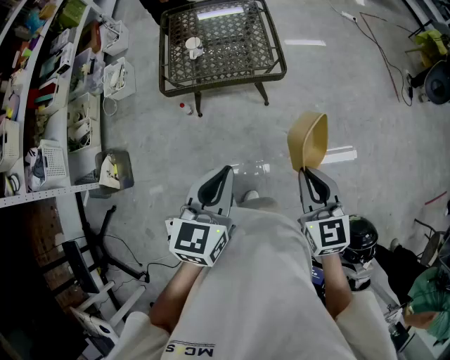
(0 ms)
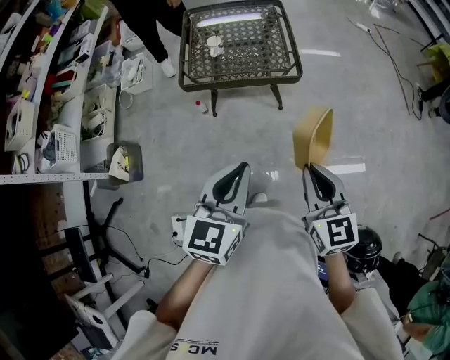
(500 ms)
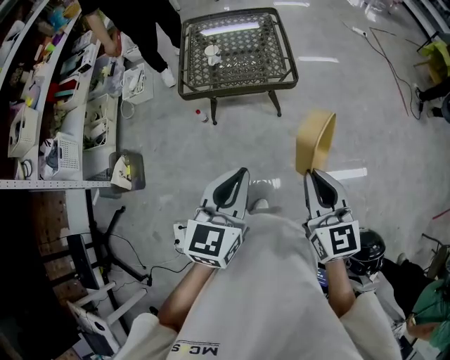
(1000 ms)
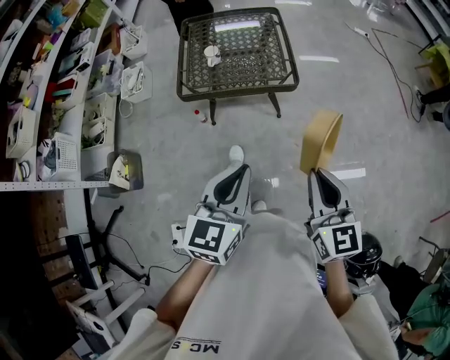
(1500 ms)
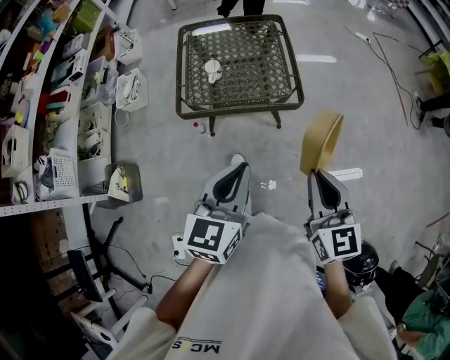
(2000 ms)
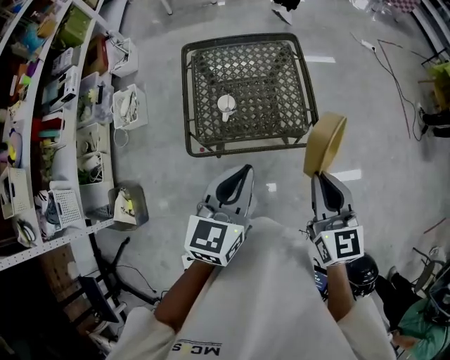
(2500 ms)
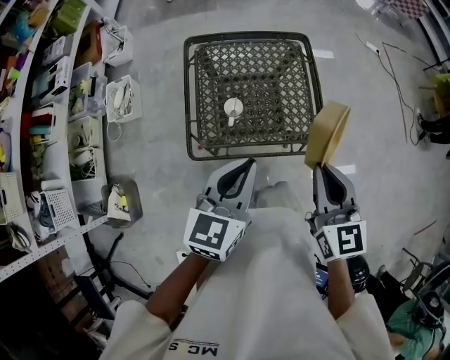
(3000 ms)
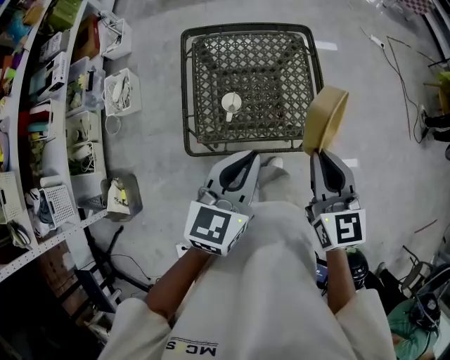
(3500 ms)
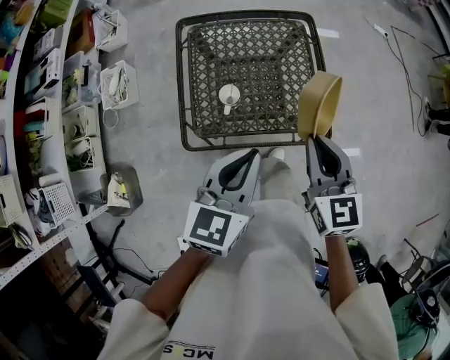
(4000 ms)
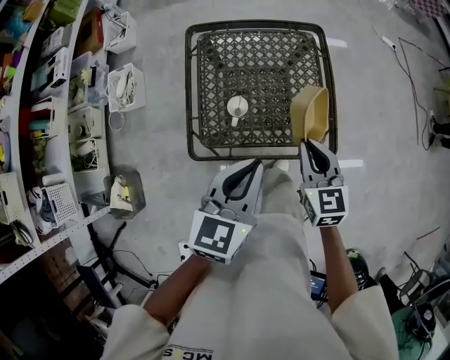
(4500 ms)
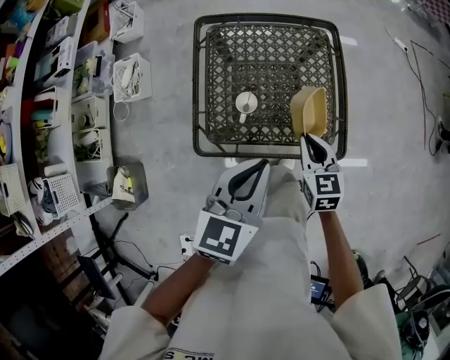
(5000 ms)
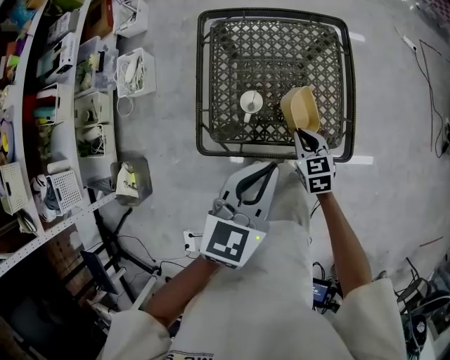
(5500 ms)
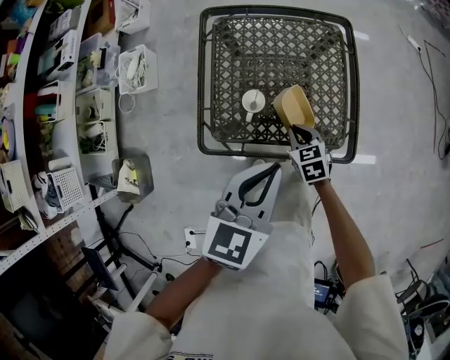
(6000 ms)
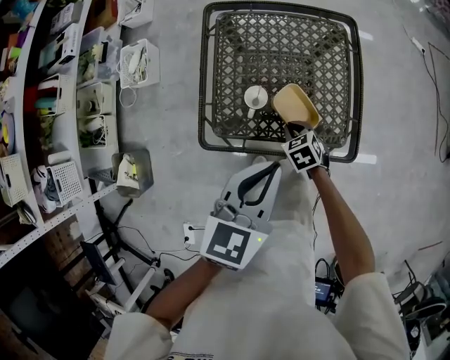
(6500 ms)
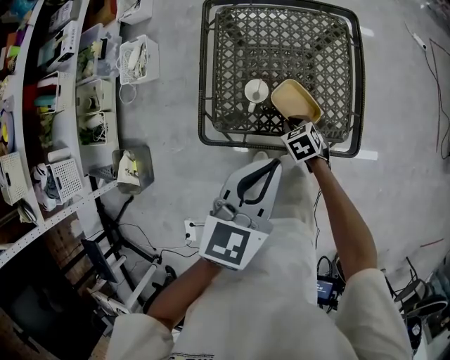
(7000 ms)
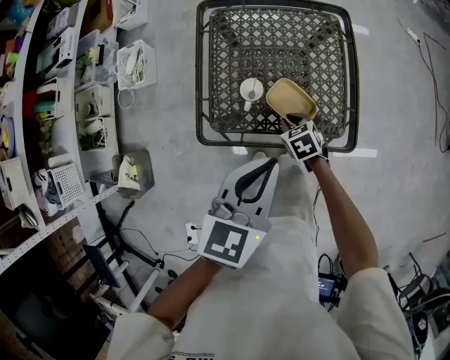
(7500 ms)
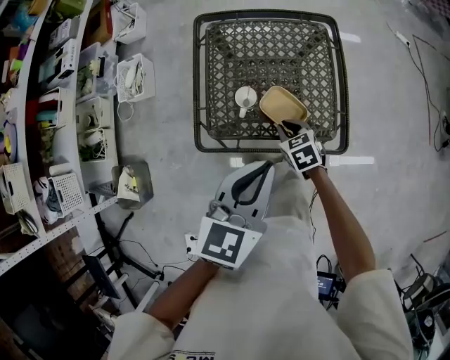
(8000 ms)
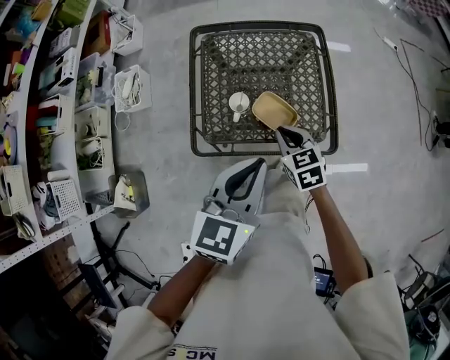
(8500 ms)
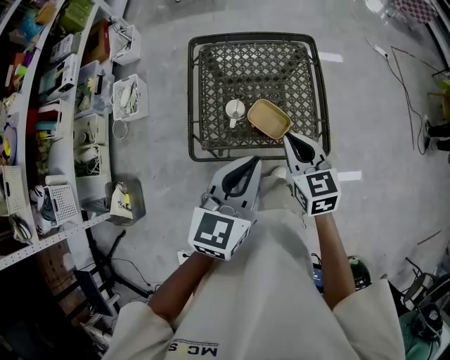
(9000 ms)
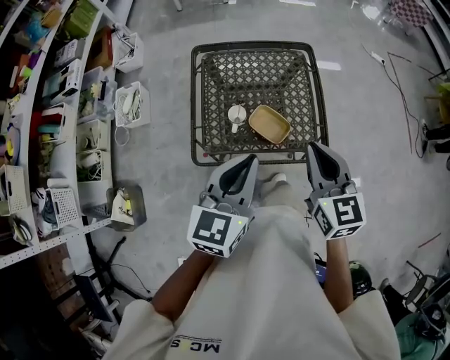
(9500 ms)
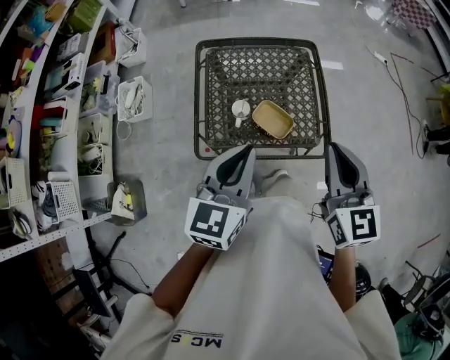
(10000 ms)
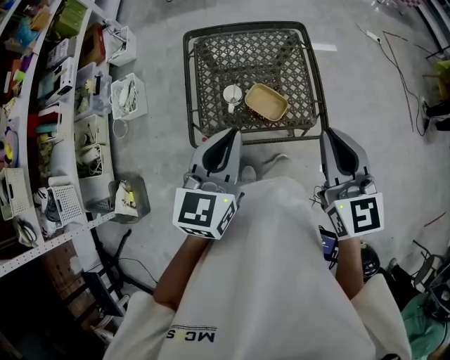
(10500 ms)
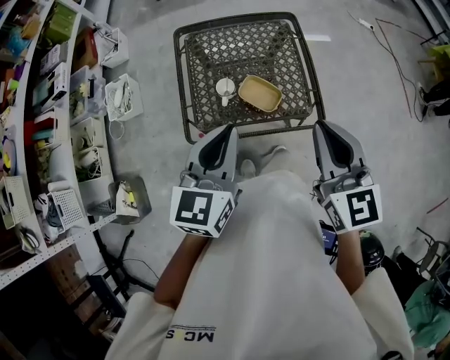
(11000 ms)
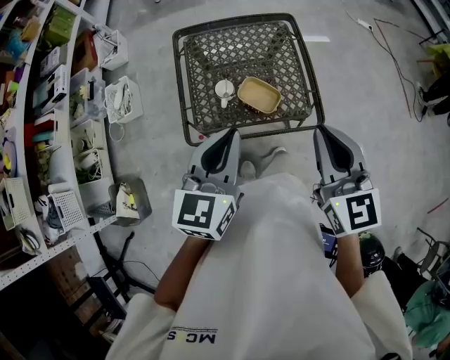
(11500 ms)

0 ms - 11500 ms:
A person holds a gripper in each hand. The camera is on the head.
0 ms - 2000 ms: The right gripper moves forward and upward, about 10 cm, while the left gripper travels forward by roughly 10 cm.
2000 ms - 4000 ms: Both grippers travel together forward and to the left, about 30 cm.
4000 ms - 6000 ms: The right gripper is displaced downward by approximately 30 cm, and swivels about 30 degrees.
6000 ms - 7500 ms: There are only small adjustments of the grippers.
7500 ms - 9500 ms: The left gripper travels upward by about 5 cm. Meanwhile the right gripper heads upward, covering some 35 cm, and points its fingers about 40 degrees further upward.
9500 ms - 11500 ms: The right gripper heads backward, covering some 5 cm.

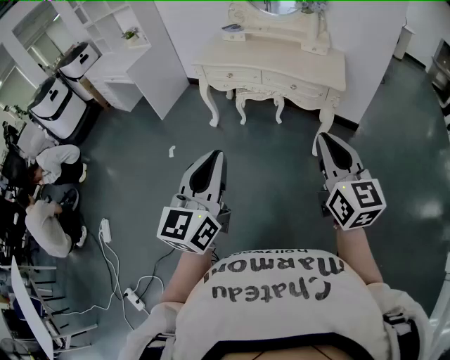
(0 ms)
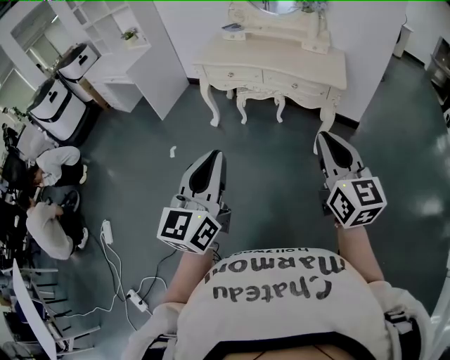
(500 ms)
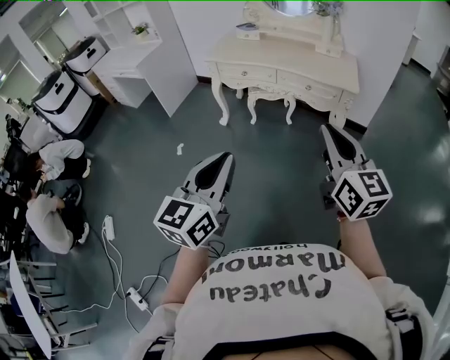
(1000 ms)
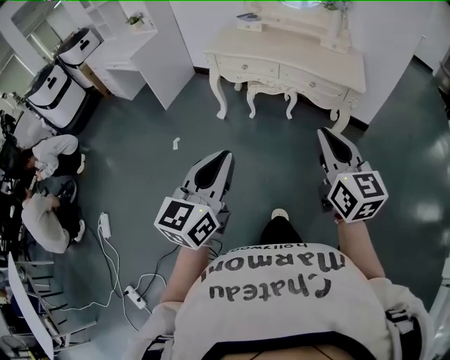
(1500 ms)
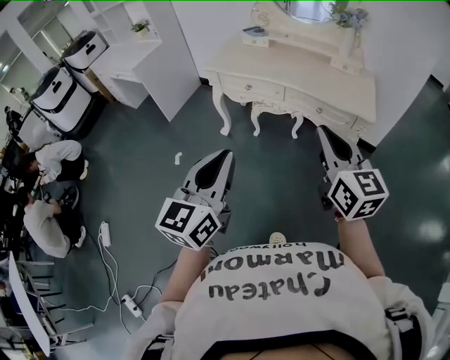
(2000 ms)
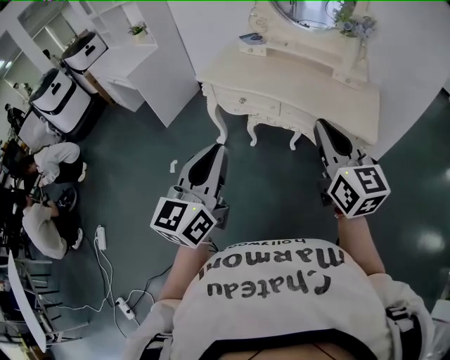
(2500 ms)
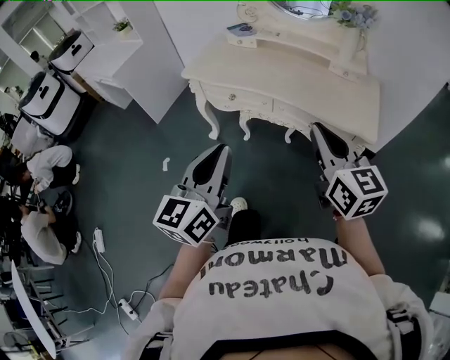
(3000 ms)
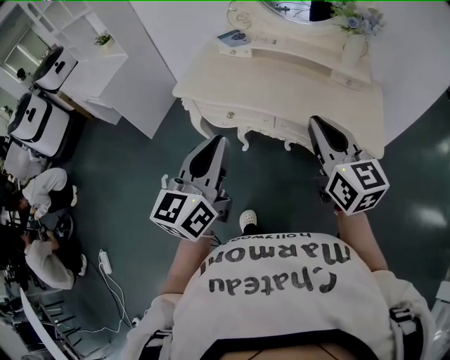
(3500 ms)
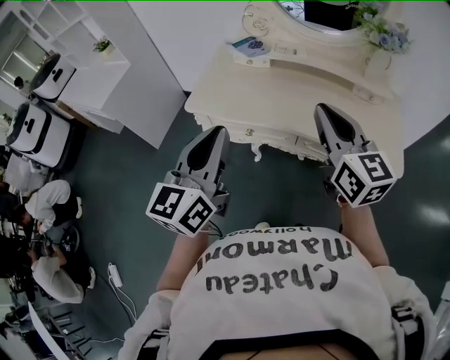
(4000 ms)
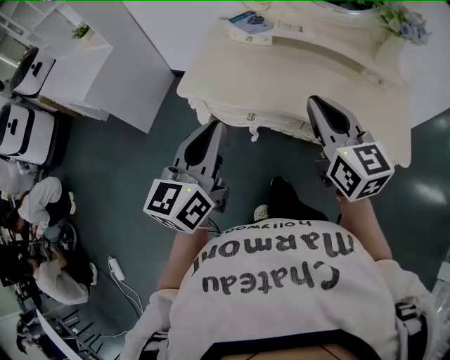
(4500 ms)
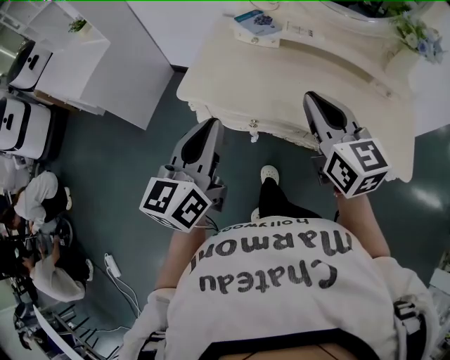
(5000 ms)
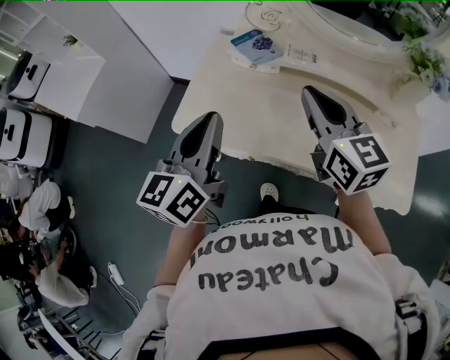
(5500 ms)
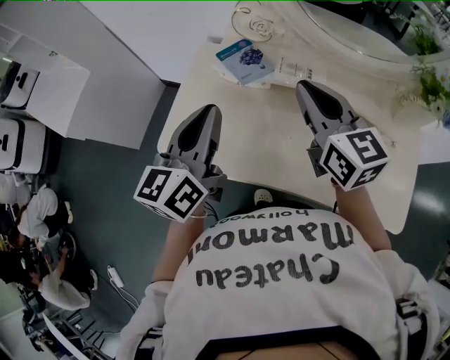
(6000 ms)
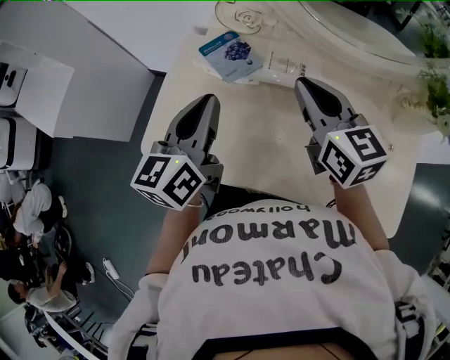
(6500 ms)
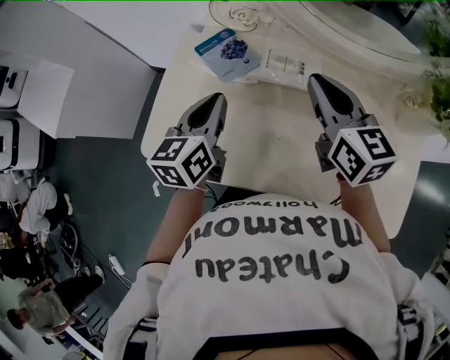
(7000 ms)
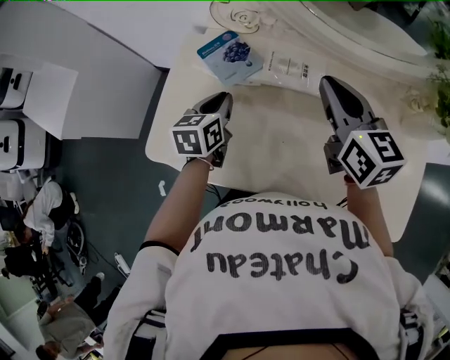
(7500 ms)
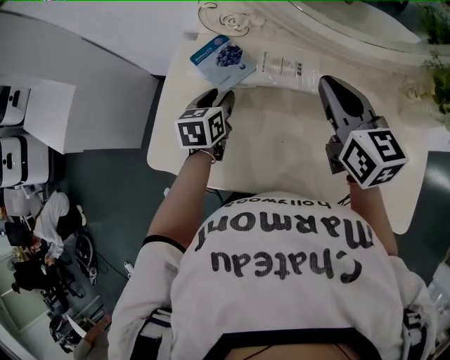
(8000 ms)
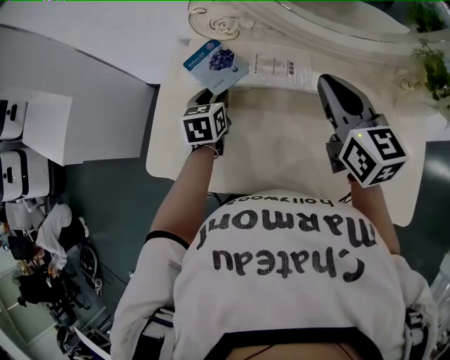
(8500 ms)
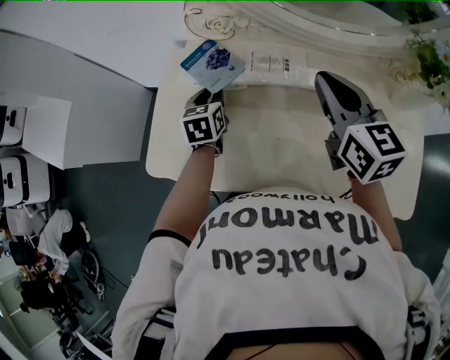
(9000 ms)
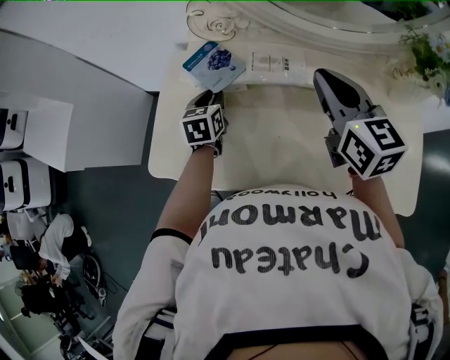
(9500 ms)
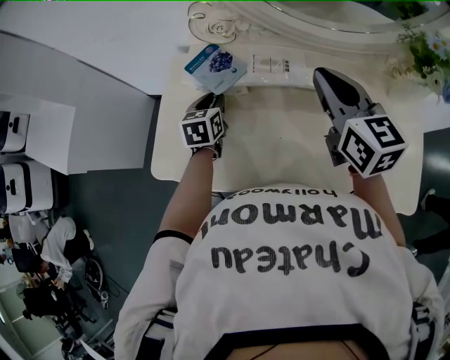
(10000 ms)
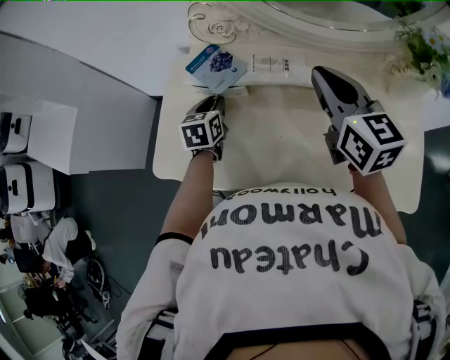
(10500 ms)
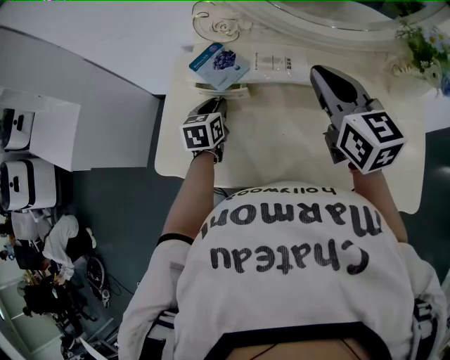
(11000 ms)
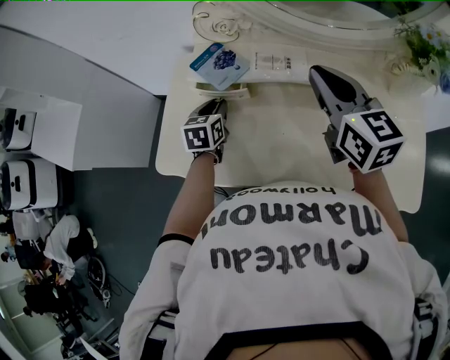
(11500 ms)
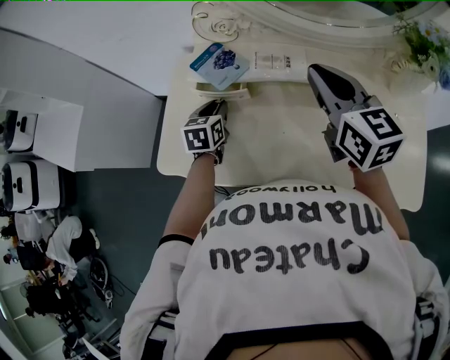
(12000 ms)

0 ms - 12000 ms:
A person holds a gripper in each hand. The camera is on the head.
0 ms - 2000 ms: The left gripper heads forward, covering approximately 15 cm. The right gripper heads forward and to the left, covering roughly 20 cm.
2000 ms - 4000 ms: Both grippers move forward, about 40 cm.
4000 ms - 6000 ms: Both grippers move forward, some 35 cm.
6000 ms - 8000 ms: The right gripper moves to the right, forward and downward, about 10 cm; the left gripper moves downward and forward, approximately 25 cm, points its fingers roughly 40 degrees further downward, and opens its fingers.
8000 ms - 12000 ms: There are only small adjustments of the grippers.

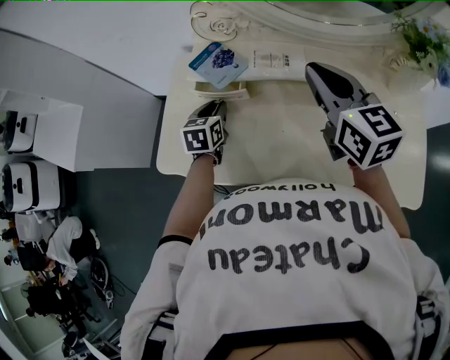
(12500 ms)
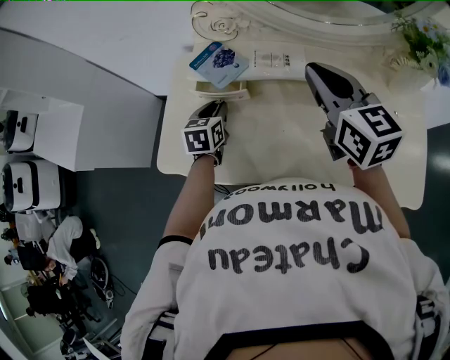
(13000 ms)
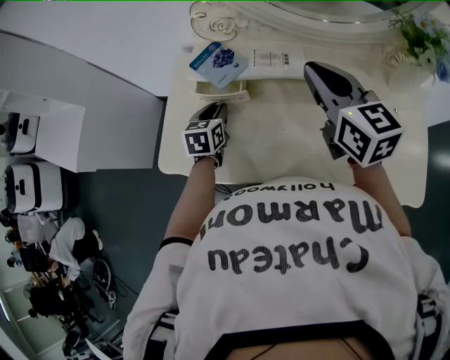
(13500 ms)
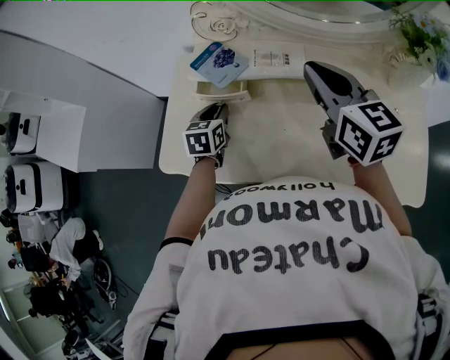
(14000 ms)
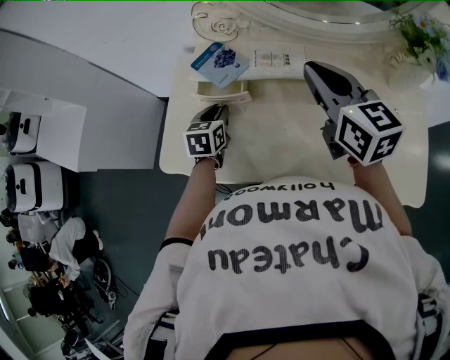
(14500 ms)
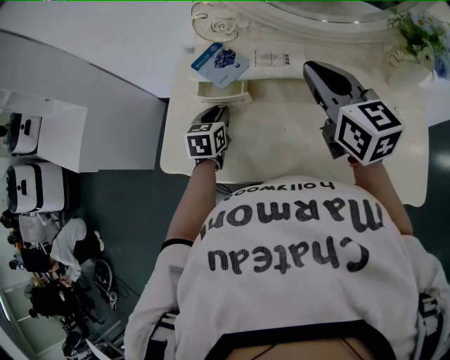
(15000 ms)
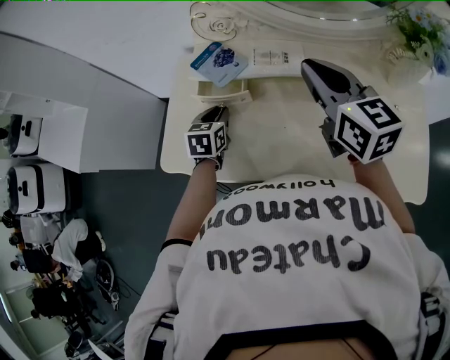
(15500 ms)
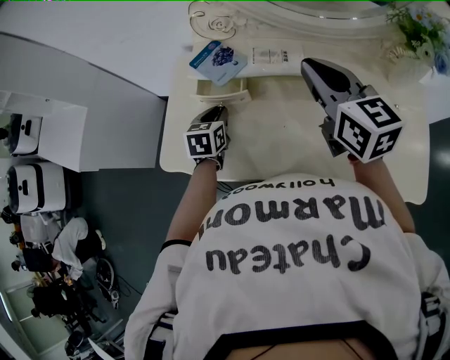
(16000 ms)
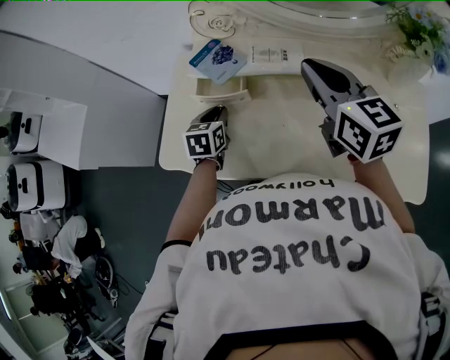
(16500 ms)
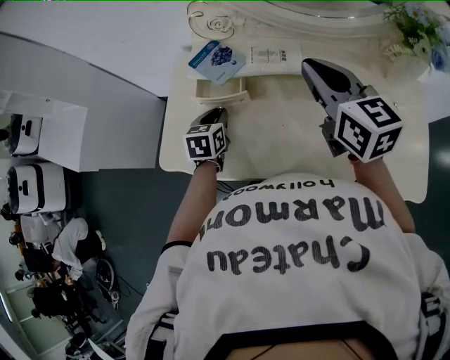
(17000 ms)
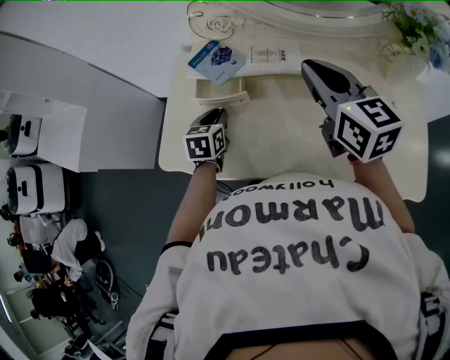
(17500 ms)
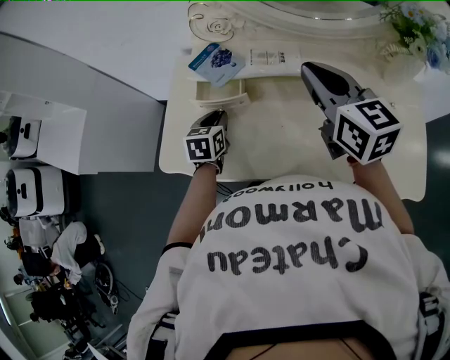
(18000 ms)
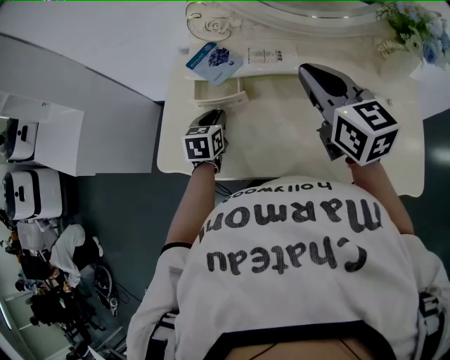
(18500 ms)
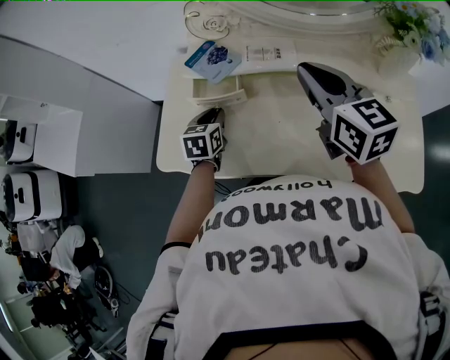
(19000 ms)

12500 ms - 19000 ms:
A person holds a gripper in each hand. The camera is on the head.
12500 ms - 14500 ms: The two grippers keep their place.
14500 ms - 19000 ms: There are only small adjustments of the grippers.
